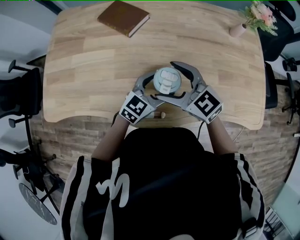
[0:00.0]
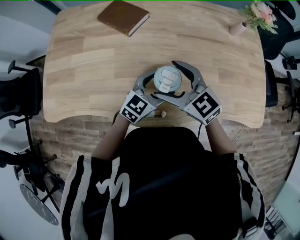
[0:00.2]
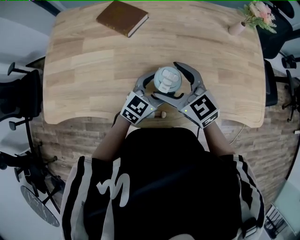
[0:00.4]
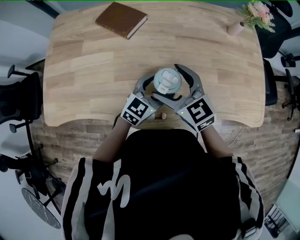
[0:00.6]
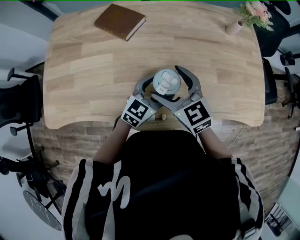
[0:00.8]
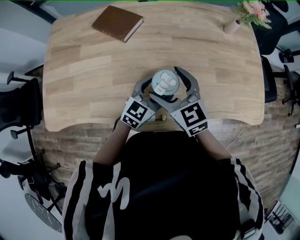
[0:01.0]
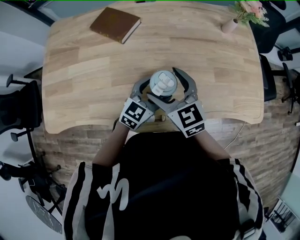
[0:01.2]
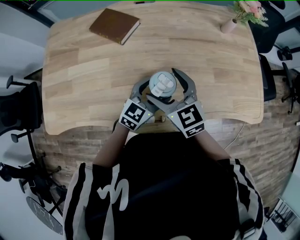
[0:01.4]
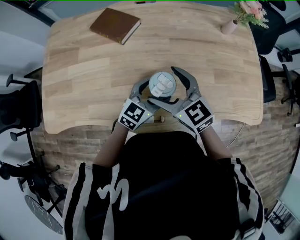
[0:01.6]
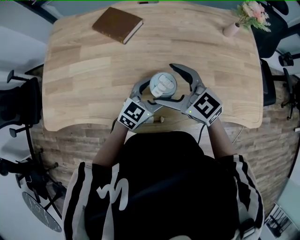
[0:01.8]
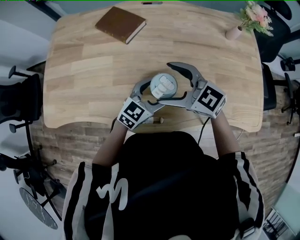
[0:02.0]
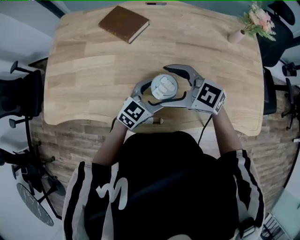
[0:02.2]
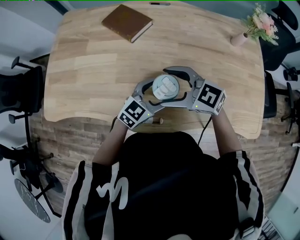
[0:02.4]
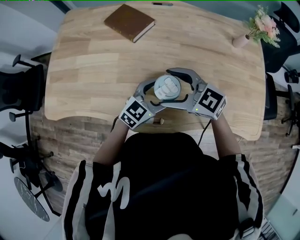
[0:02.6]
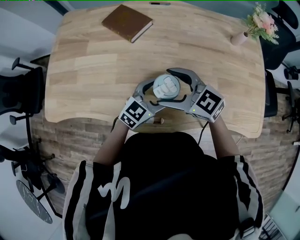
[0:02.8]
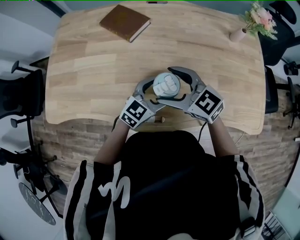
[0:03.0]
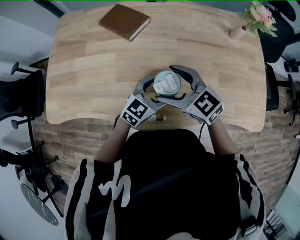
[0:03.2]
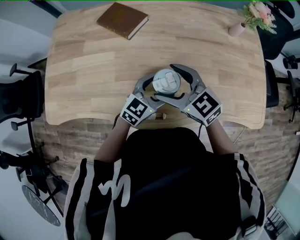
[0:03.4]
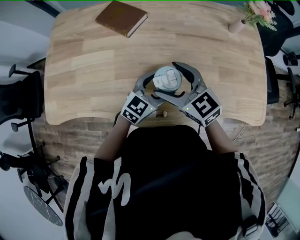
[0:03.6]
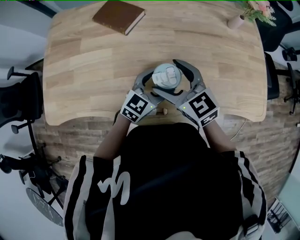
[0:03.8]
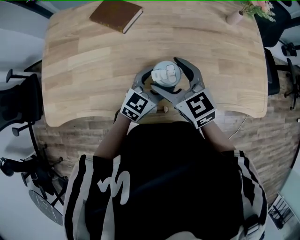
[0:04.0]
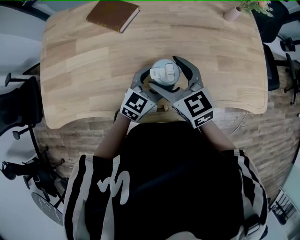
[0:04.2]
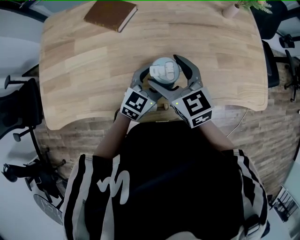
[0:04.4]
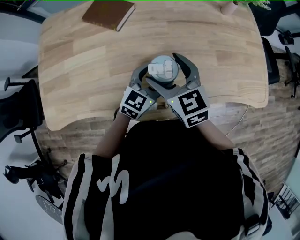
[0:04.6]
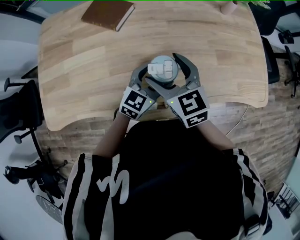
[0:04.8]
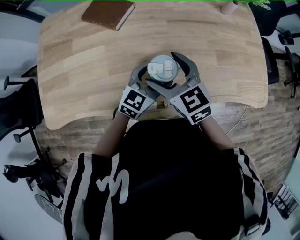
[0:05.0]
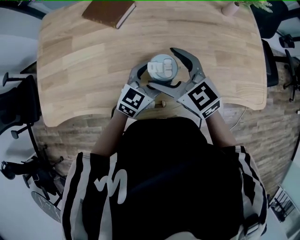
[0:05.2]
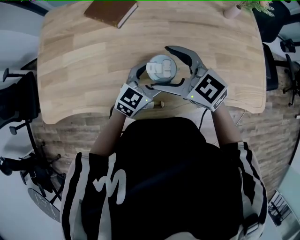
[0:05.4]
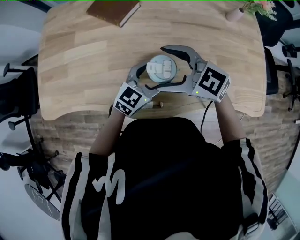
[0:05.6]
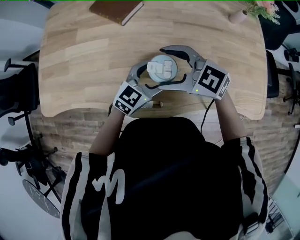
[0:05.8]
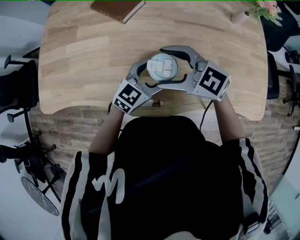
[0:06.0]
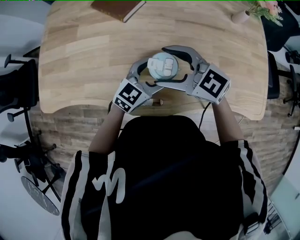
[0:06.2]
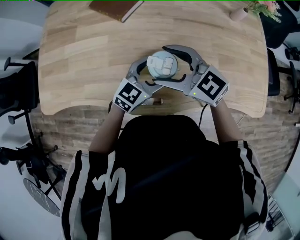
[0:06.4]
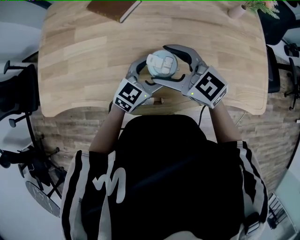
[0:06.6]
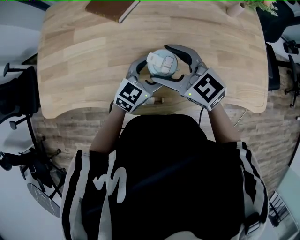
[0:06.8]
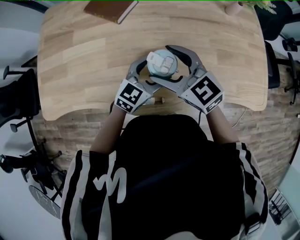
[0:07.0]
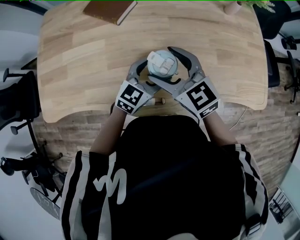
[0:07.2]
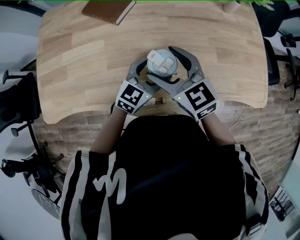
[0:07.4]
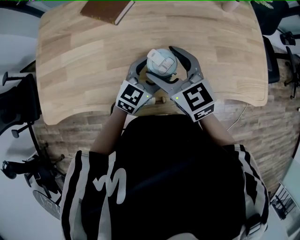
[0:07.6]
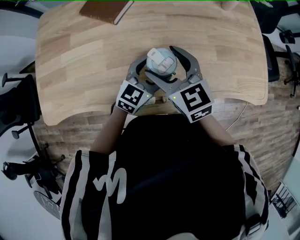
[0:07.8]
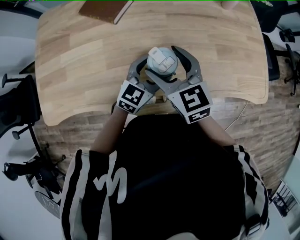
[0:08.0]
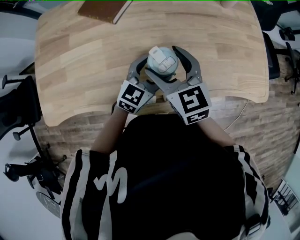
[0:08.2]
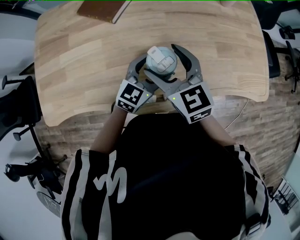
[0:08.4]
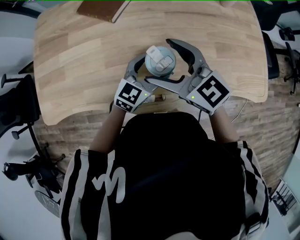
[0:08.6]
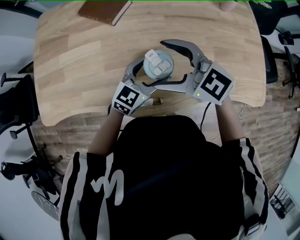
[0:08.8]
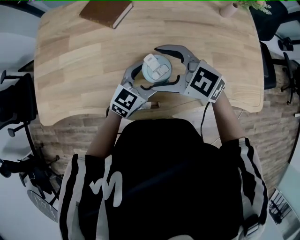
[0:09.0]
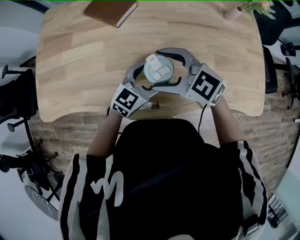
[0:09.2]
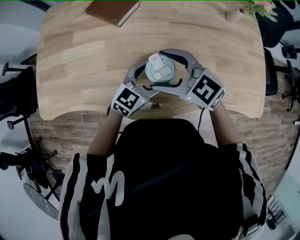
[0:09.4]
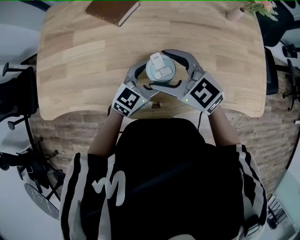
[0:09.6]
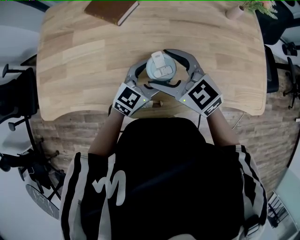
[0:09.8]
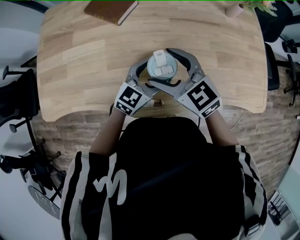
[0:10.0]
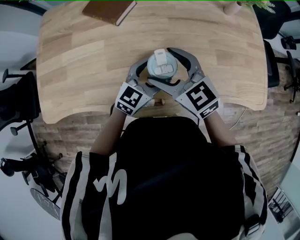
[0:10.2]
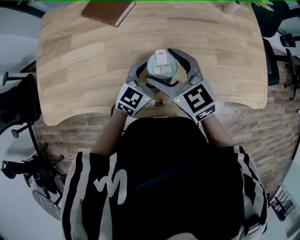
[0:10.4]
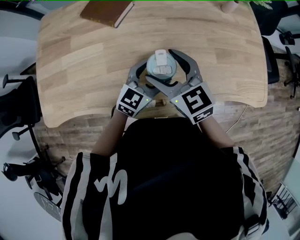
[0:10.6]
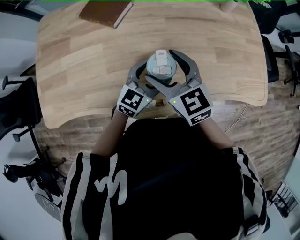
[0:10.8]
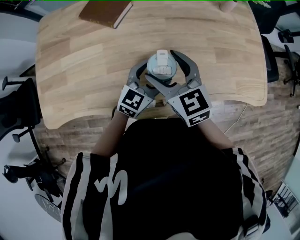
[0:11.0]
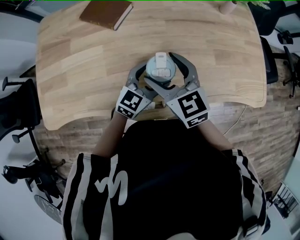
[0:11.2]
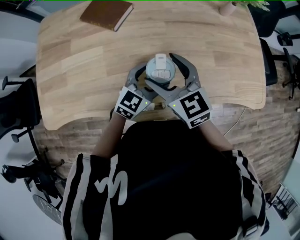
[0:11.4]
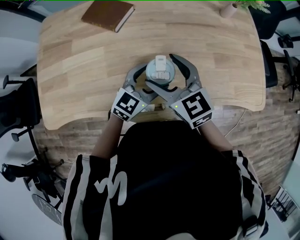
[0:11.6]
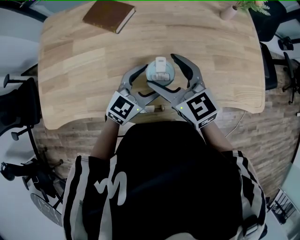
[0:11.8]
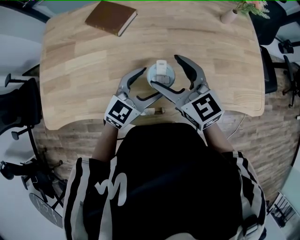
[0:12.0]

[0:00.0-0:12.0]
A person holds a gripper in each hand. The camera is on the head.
0:03.0 to 0:04.4: The right gripper changes its angle by approximately 30 degrees.
0:04.4 to 0:06.0: The right gripper changes its angle by some 50 degrees.
0:06.0 to 0:07.6: The right gripper turns by approximately 40 degrees.
0:07.6 to 0:09.0: The right gripper rotates roughly 40 degrees.
0:09.0 to 0:10.4: The right gripper swivels roughly 30 degrees.
0:10.4 to 0:12.0: The left gripper moves about 5 cm.

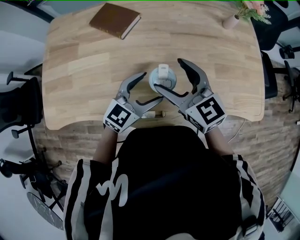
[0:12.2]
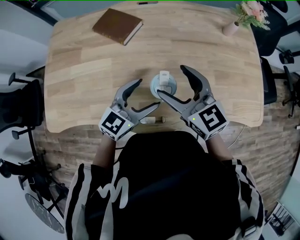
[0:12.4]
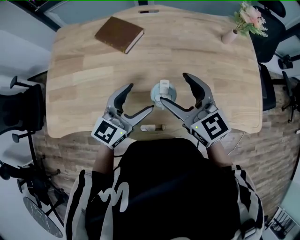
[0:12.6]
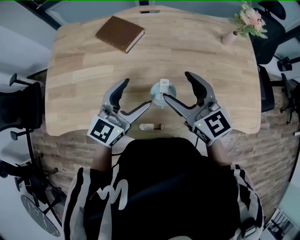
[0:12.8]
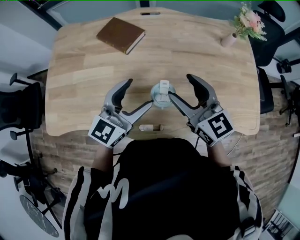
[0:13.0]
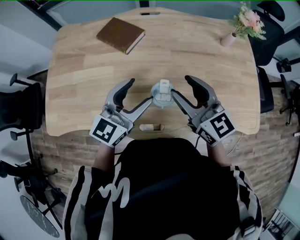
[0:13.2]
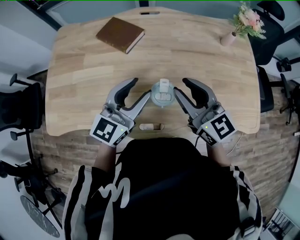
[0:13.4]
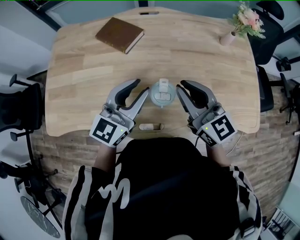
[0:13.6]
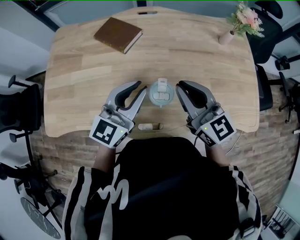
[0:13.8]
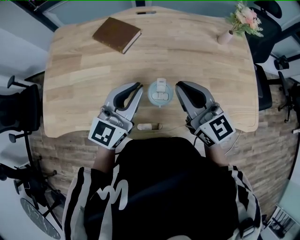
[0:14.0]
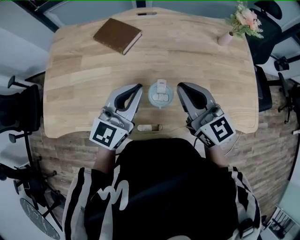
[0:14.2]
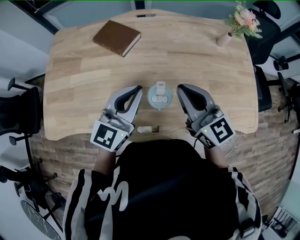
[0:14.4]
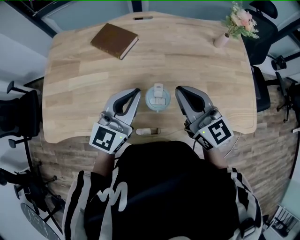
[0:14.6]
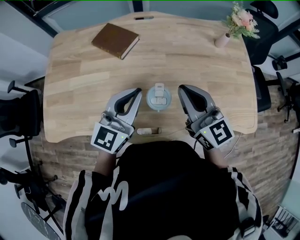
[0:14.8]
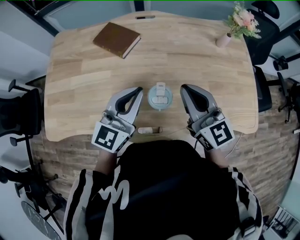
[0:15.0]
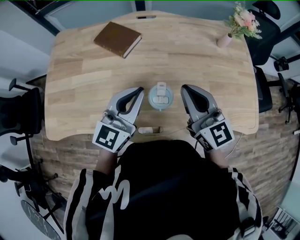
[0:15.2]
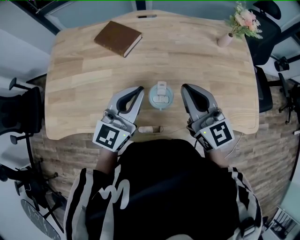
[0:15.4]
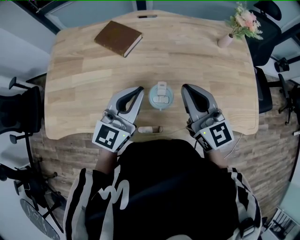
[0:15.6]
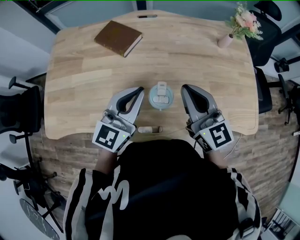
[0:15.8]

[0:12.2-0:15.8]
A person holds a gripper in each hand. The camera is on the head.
0:12.2 to 0:14.0: The right gripper changes place by roughly 5 cm, and closes its fingers. The left gripper goes some 10 cm upward, rotates approximately 20 degrees, and closes up.
0:14.0 to 0:15.8: There are only small adjustments of the grippers.

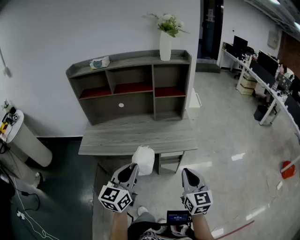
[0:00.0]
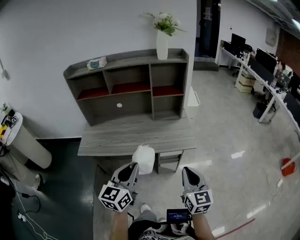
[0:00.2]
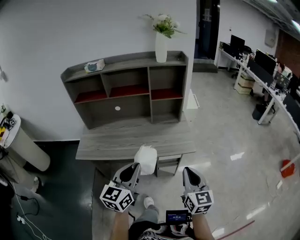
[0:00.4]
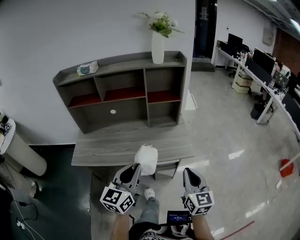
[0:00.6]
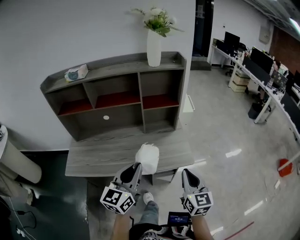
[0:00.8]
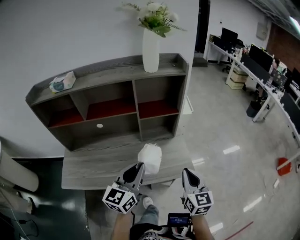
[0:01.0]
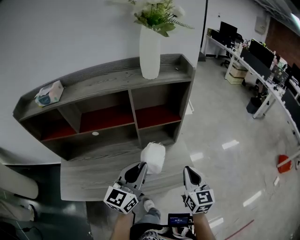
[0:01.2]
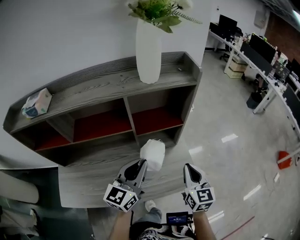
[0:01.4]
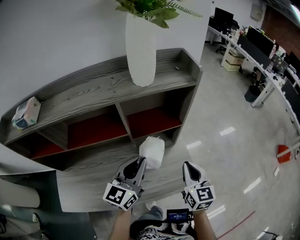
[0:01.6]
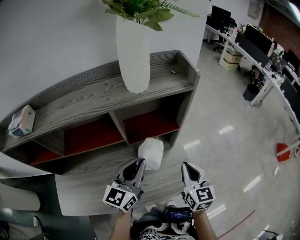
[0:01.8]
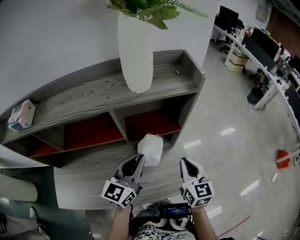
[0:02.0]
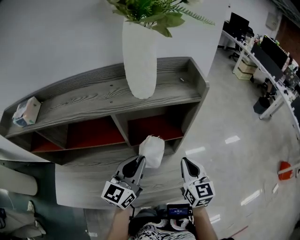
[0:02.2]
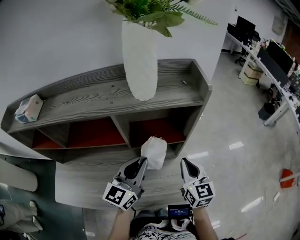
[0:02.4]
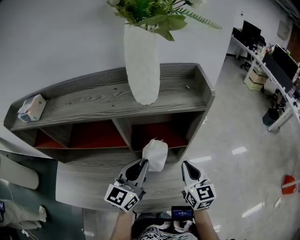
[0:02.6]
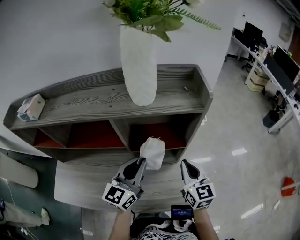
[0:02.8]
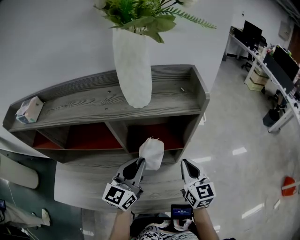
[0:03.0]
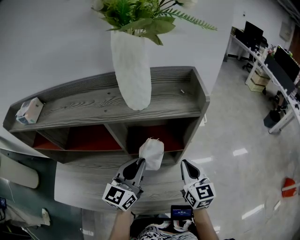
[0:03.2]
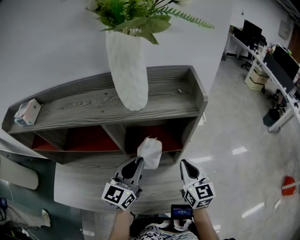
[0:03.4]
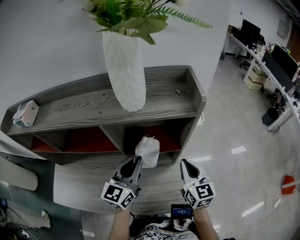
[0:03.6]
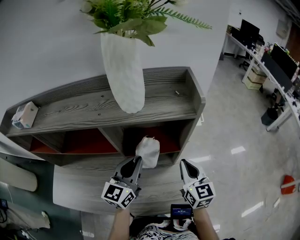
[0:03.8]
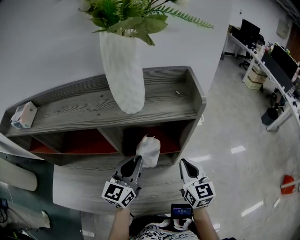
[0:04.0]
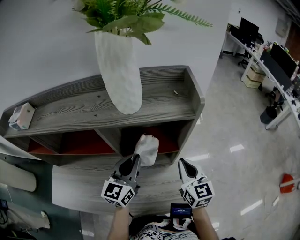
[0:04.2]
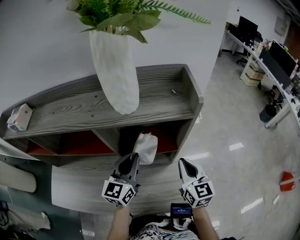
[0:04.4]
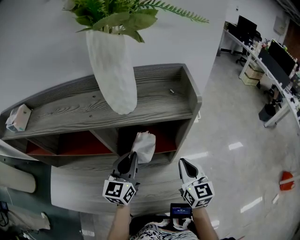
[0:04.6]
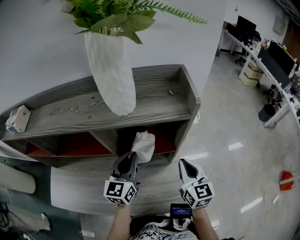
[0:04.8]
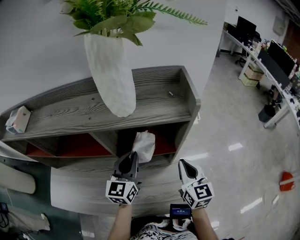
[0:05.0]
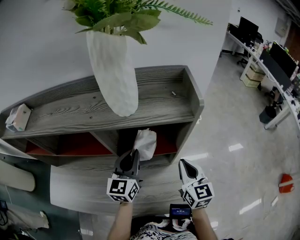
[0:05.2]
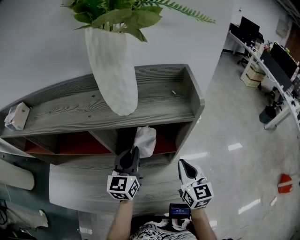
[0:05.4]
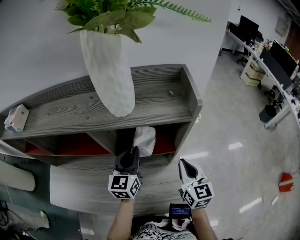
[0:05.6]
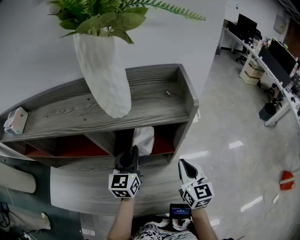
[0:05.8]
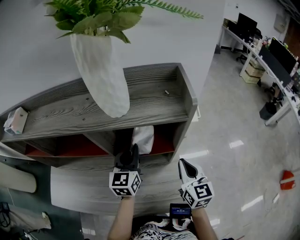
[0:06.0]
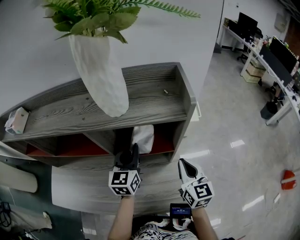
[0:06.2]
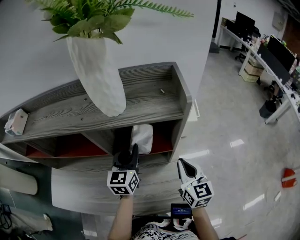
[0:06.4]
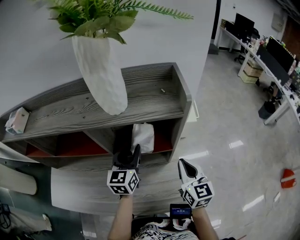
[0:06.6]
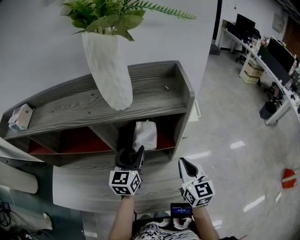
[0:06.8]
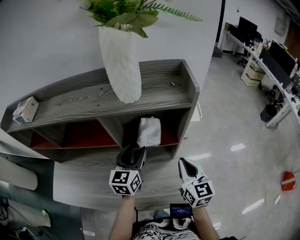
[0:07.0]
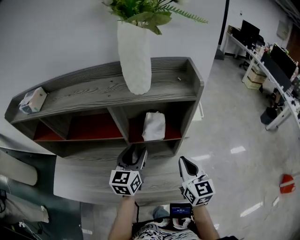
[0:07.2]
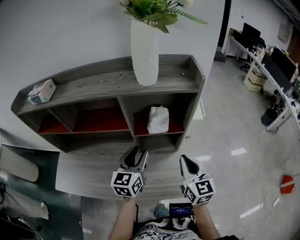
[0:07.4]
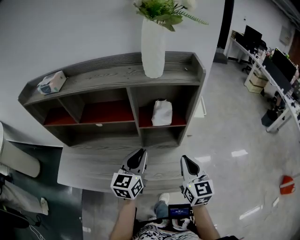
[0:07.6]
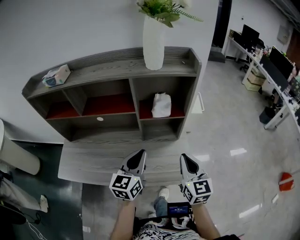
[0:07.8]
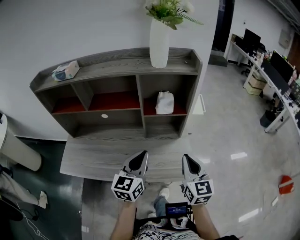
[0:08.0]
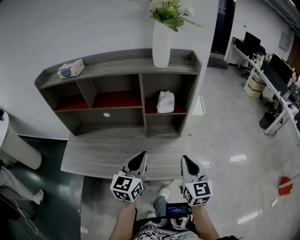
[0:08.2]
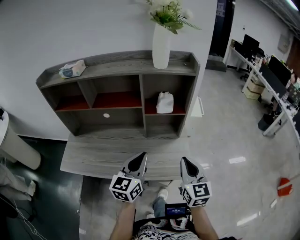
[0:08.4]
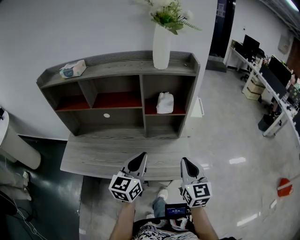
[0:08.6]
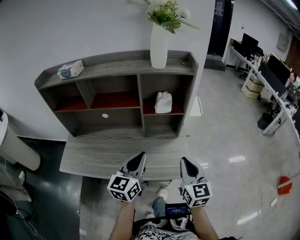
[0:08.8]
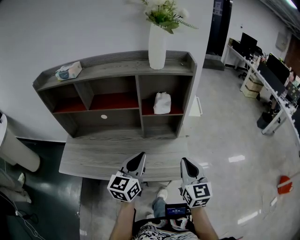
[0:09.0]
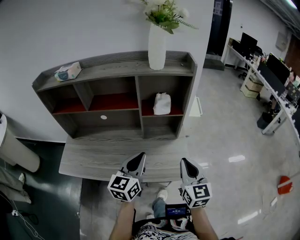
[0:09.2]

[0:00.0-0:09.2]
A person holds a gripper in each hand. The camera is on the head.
0:00.0 to 0:01.6: Both grippers are carried forward, roughly 50 cm.
0:01.6 to 0:03.0: The left gripper travels forward by about 5 cm, while the right gripper goes some 10 cm forward.
0:03.0 to 0:04.6: The left gripper travels forward by some 5 cm.
0:04.6 to 0:06.2: The grippers make only small movements.
0:06.2 to 0:07.6: The left gripper shifts roughly 20 cm backward, and opens, then closes once more. The right gripper heads backward and to the left, covering roughly 15 cm.
0:07.6 to 0:09.2: The grippers both shift backward by roughly 10 cm.
